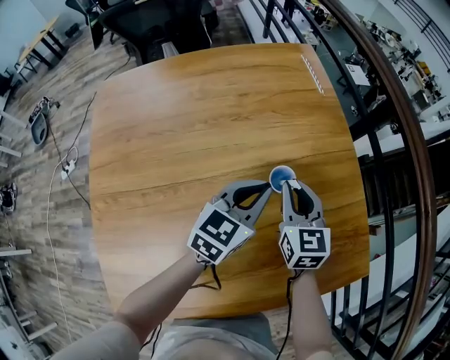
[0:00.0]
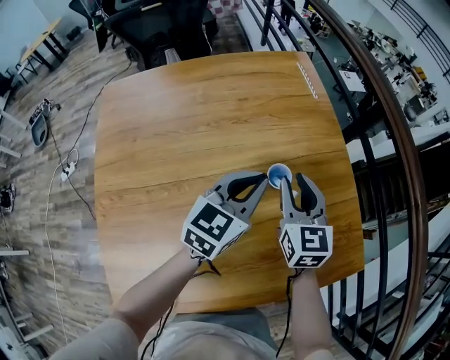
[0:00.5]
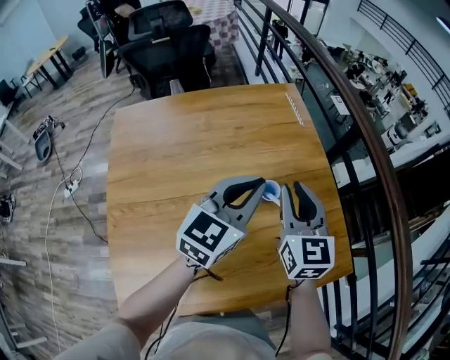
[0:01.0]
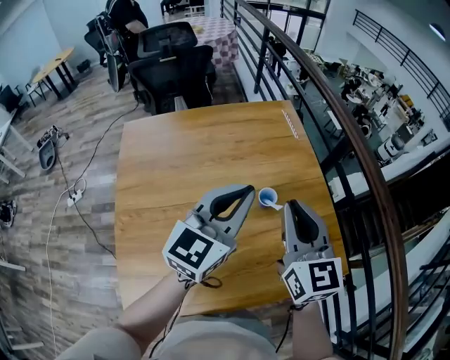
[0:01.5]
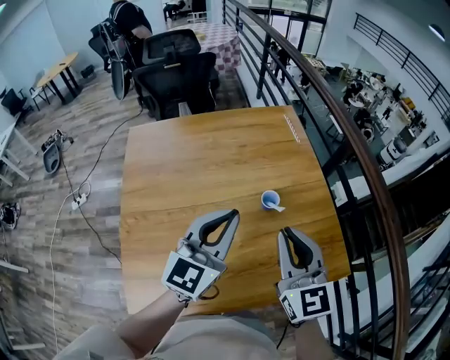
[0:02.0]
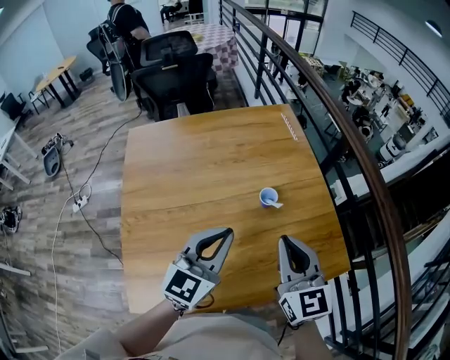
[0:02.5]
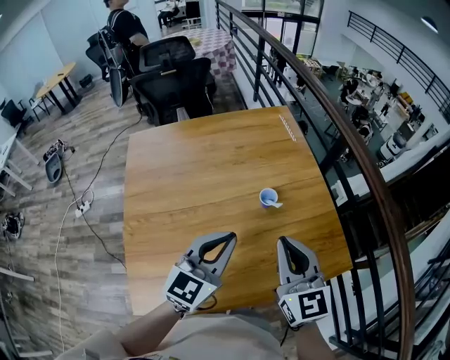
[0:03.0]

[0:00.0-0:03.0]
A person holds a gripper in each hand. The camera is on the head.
0:00.0 to 0:01.5: The right gripper heads upward and backward, covering roughly 30 cm. Meanwhile the left gripper shifts approximately 25 cm upward, and rotates some 20 degrees.
0:01.5 to 0:03.0: The right gripper moves backward, some 10 cm; the left gripper moves backward and downward, about 10 cm.

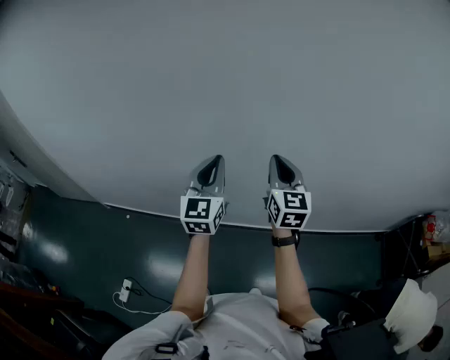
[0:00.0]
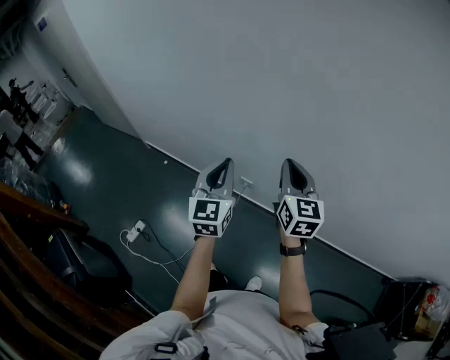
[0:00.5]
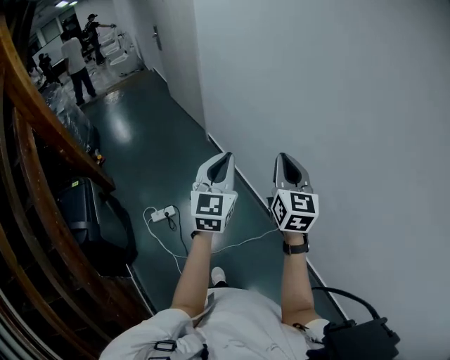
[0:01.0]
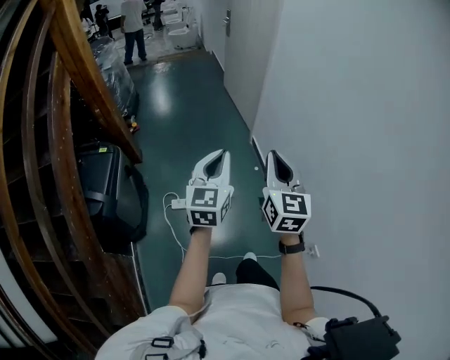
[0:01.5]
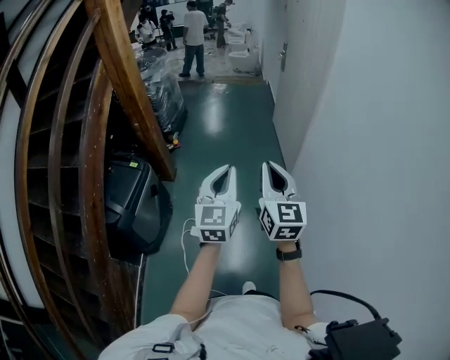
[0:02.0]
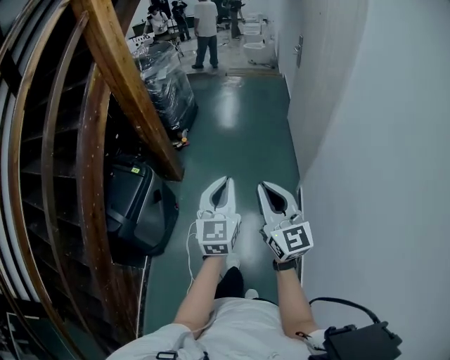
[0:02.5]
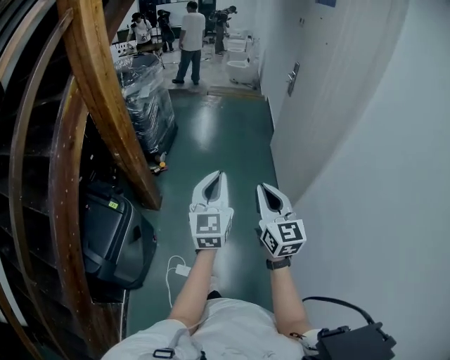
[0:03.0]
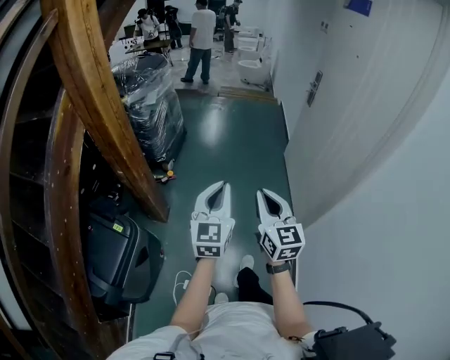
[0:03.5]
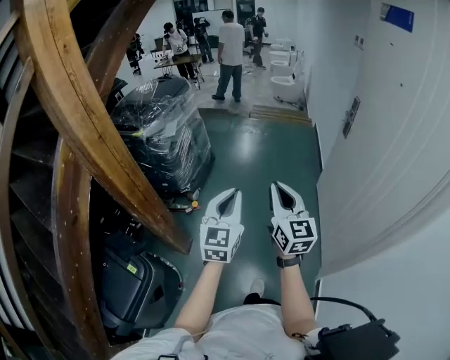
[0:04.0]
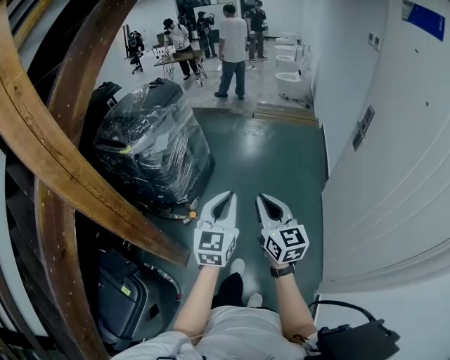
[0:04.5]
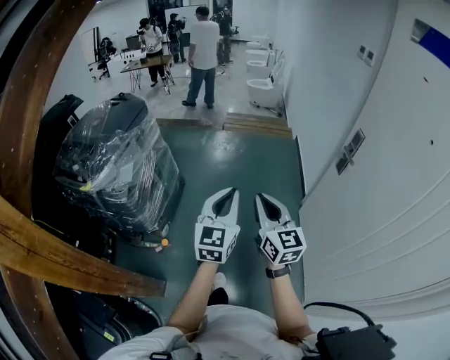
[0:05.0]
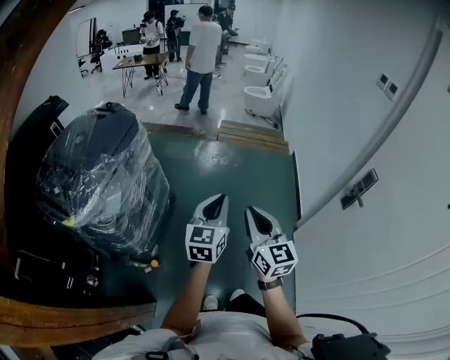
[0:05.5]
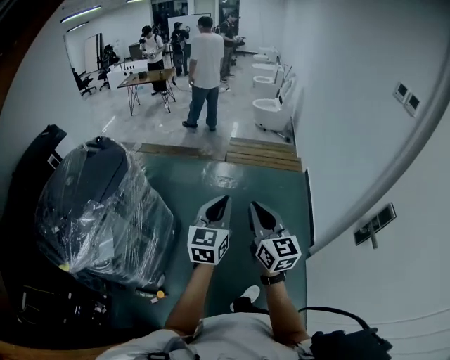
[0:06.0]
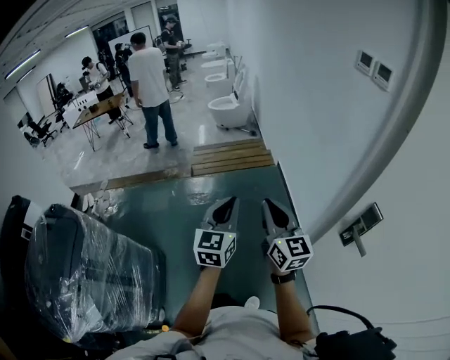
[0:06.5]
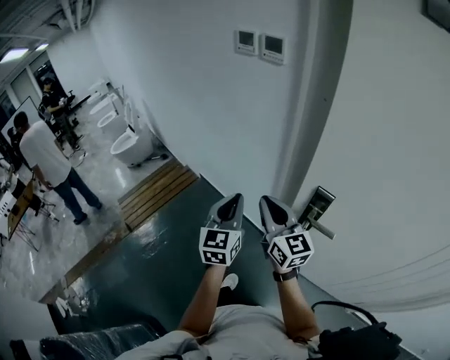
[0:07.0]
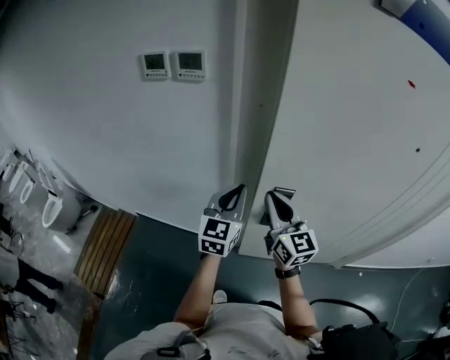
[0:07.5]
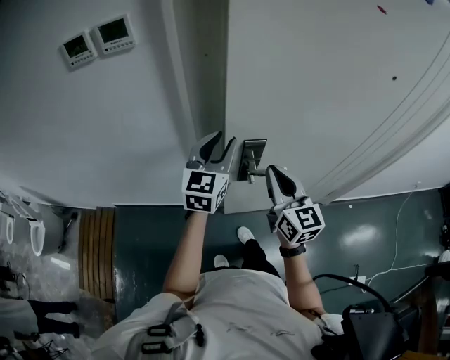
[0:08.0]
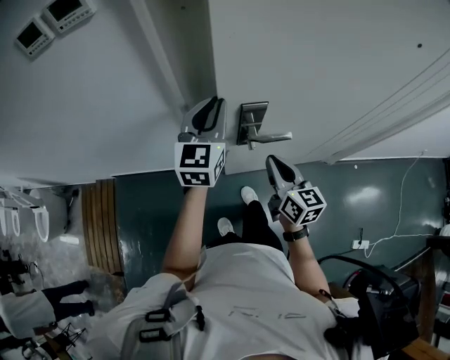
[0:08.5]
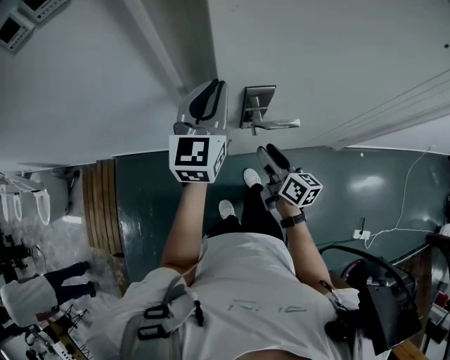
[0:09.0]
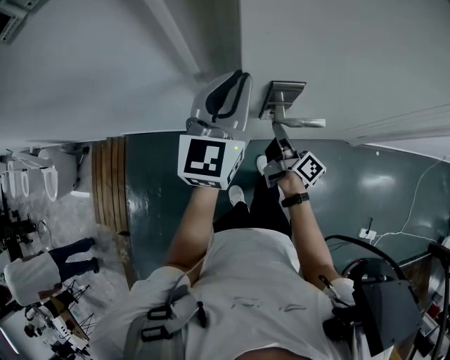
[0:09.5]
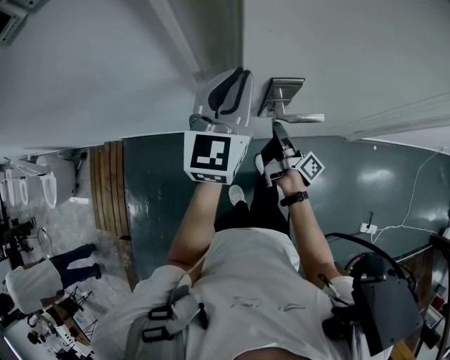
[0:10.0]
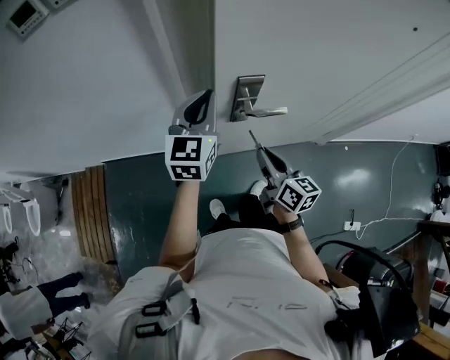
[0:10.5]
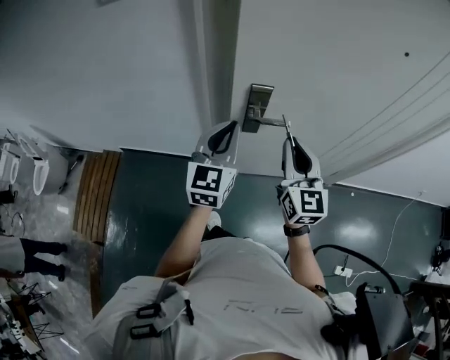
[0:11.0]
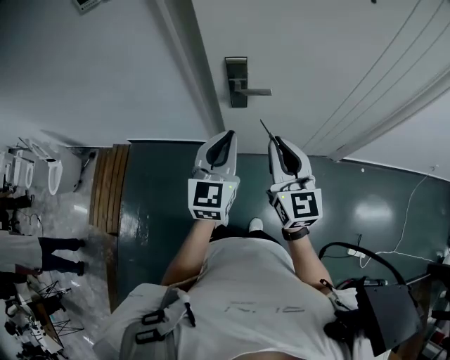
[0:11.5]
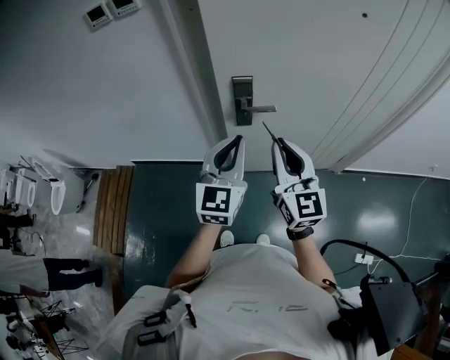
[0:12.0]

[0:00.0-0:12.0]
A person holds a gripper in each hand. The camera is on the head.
0:00.0 to 0:02.0: The two grippers travel together, about 90 cm. The left gripper rotates roughly 90 degrees. Meanwhile the right gripper changes its angle by about 90 degrees.
0:02.0 to 0:04.0: The two grippers travel together, forward, about 70 cm.
0:04.0 to 0:06.0: Both grippers are carried forward, some 70 cm.
0:06.0 to 0:08.0: The two grippers travel together, roughly 60 cm. The left gripper changes its angle by about 100 degrees, and opens its fingers. Meanwhile the right gripper rotates approximately 100 degrees.
0:08.0 to 0:10.0: The left gripper closes. The right gripper is displaced downward by roughly 25 cm, rotates around the line of its fingers by approximately 80 degrees, clockwise from behind, and opens and closes again.
0:10.0 to 0:12.0: The right gripper moves upward and backward, roughly 35 cm, and rotates around the line of its fingers by approximately 90 degrees, counterclockwise from behind. The left gripper travels backward by roughly 25 cm.

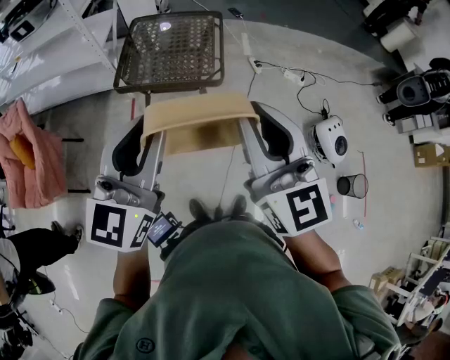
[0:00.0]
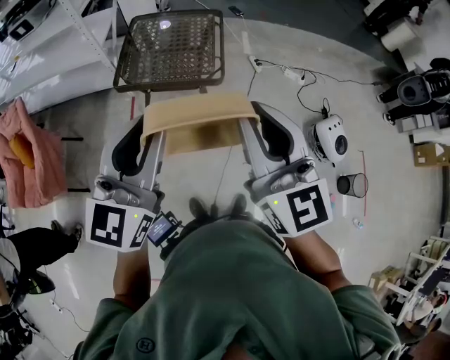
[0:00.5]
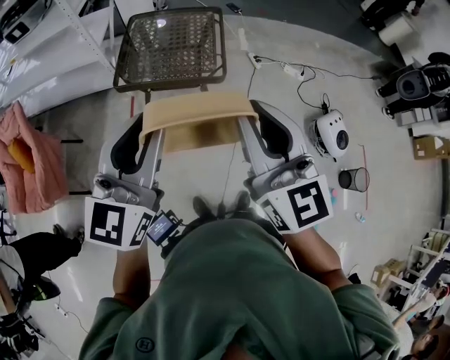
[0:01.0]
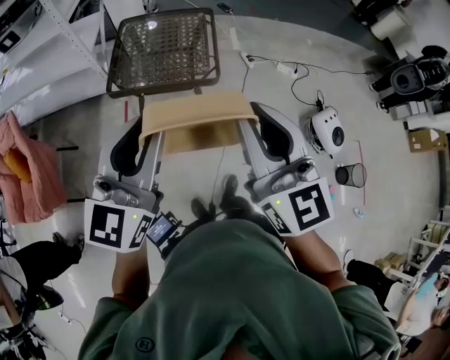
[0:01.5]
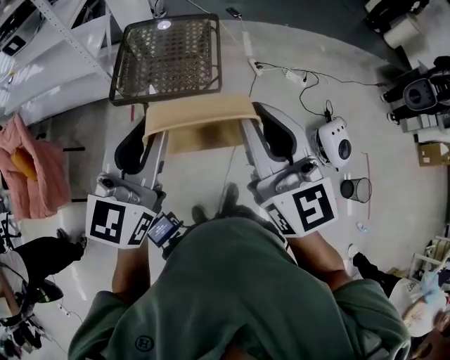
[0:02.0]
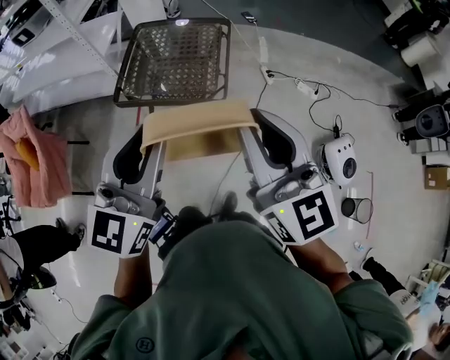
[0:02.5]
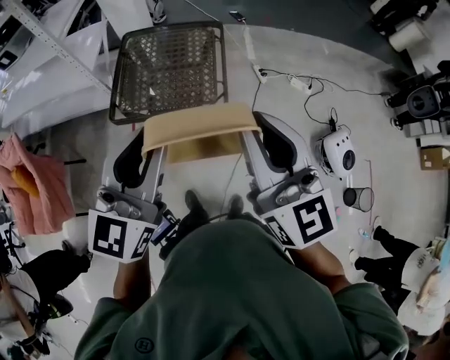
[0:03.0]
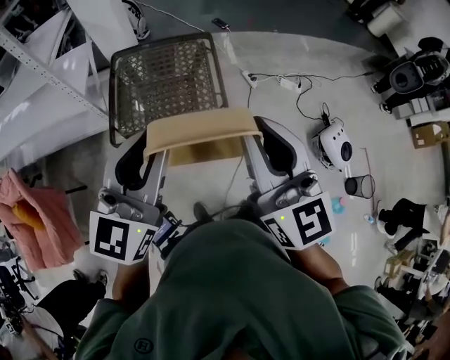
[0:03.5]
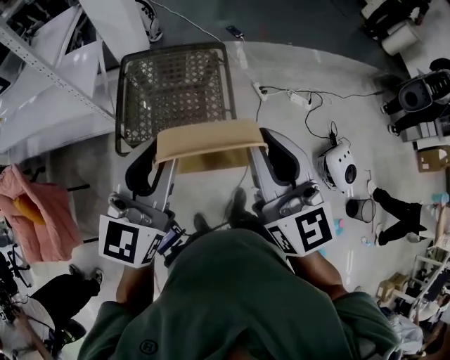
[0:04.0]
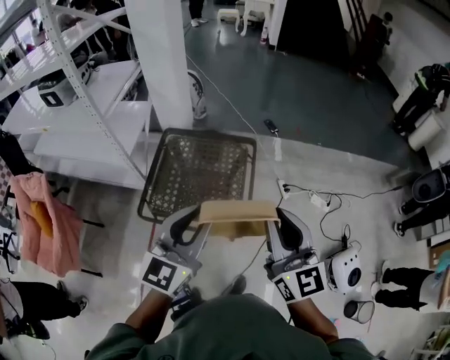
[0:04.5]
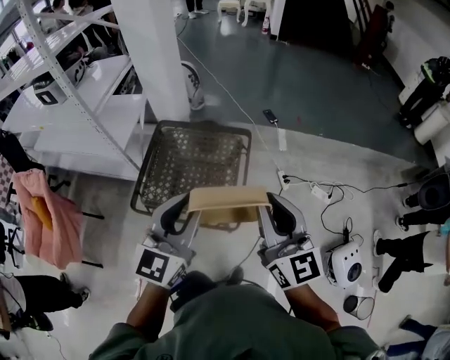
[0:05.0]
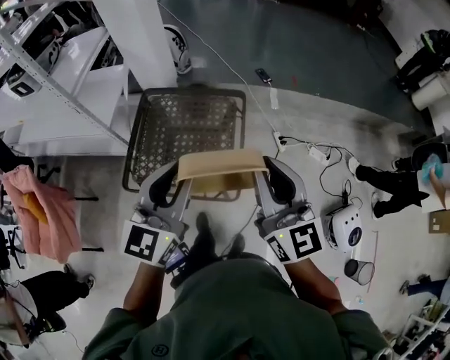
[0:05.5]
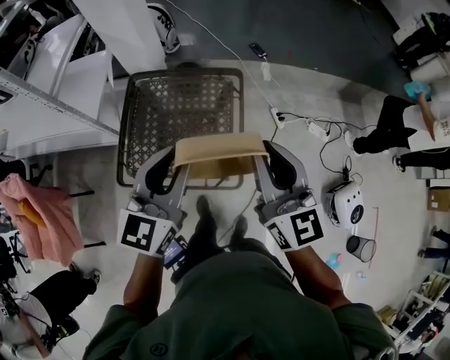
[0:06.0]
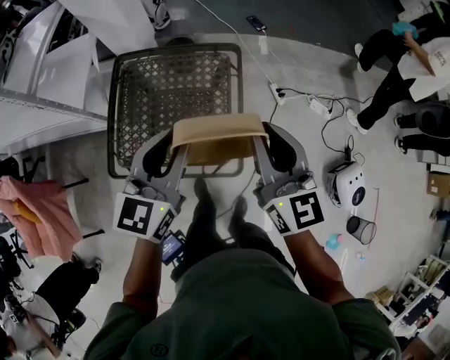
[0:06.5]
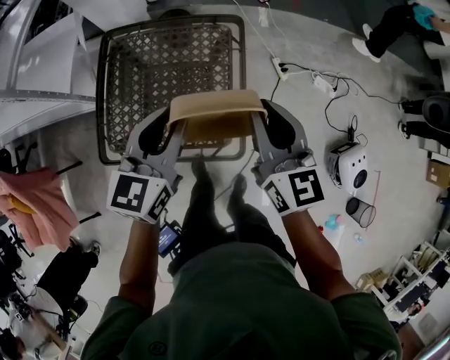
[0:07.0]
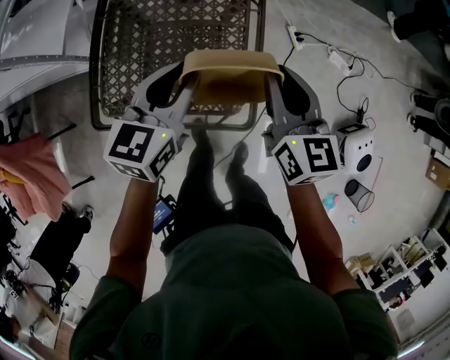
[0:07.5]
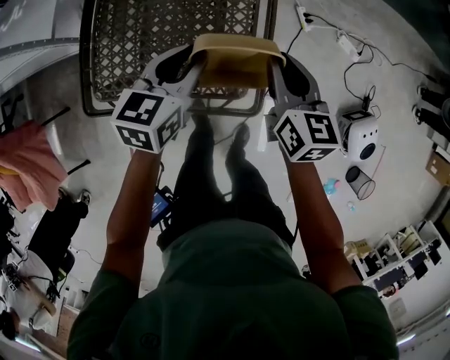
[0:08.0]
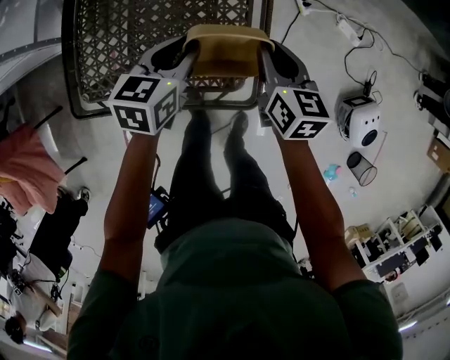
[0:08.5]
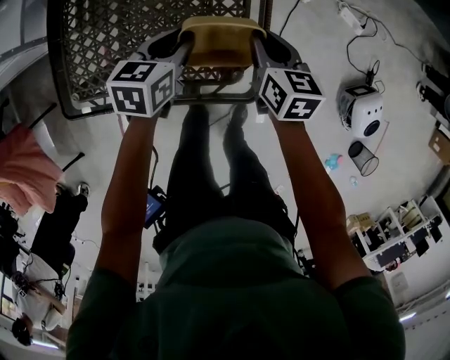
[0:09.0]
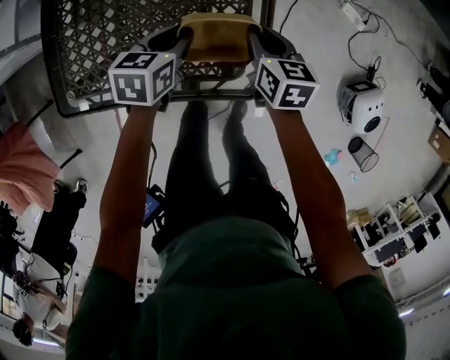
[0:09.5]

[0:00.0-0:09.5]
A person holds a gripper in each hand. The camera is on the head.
0:00.0 to 0:02.0: The grippers both shift forward by approximately 10 cm.
0:02.0 to 0:04.0: The two grippers go roughly 25 cm forward.
0:04.0 to 0:05.5: Both grippers travel together forward and to the right, approximately 20 cm.
0:05.5 to 0:07.5: Both grippers move downward and forward, roughly 35 cm. The right gripper turns by roughly 20 degrees. Meanwhile the left gripper changes its angle by roughly 20 degrees.
0:07.5 to 0:09.5: The grippers both shift downward by approximately 30 cm. The right gripper changes its angle by approximately 30 degrees. The left gripper changes its angle by roughly 30 degrees.

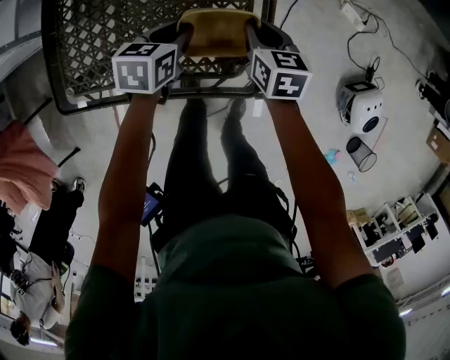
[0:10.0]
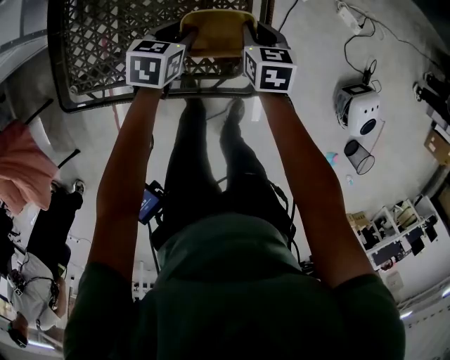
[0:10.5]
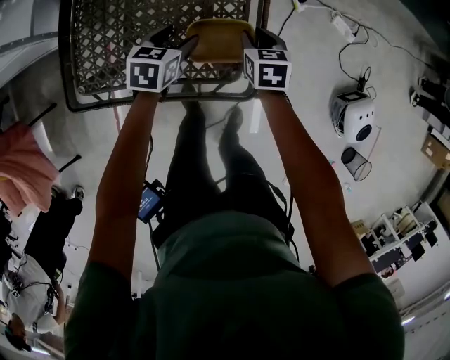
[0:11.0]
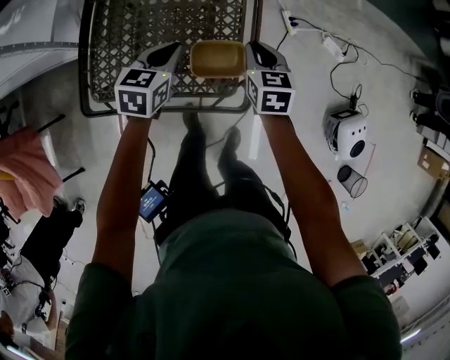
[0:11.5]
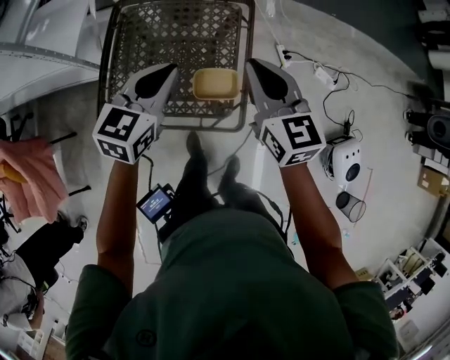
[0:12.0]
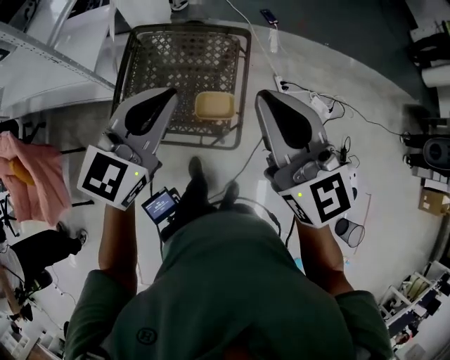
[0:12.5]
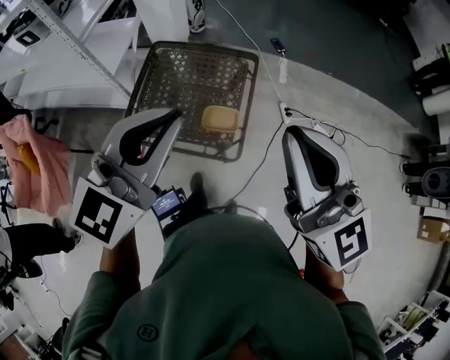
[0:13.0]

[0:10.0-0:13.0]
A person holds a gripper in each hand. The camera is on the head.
0:10.0 to 0:11.5: The two grippers go roughly 15 cm upward. The left gripper opens and closes again.
0:11.5 to 0:13.0: Both grippers move upward and backward, some 50 cm. The left gripper tips its fingers upward by about 30 degrees. Meanwhile the right gripper tips its fingers upward by some 50 degrees.
